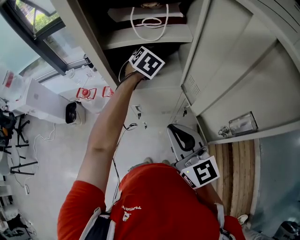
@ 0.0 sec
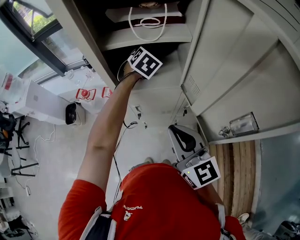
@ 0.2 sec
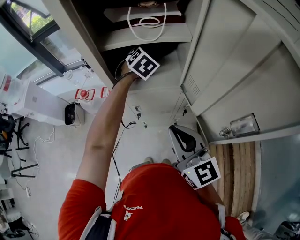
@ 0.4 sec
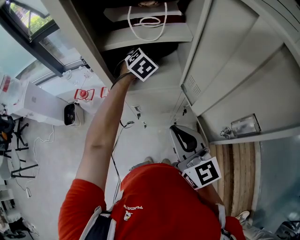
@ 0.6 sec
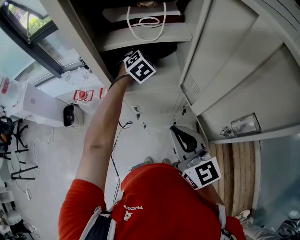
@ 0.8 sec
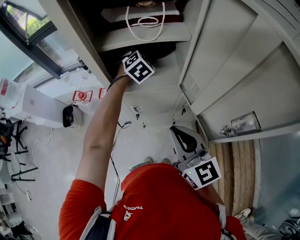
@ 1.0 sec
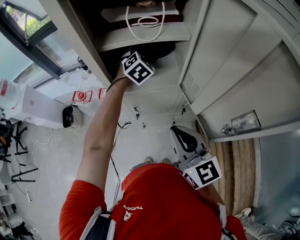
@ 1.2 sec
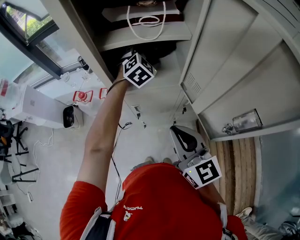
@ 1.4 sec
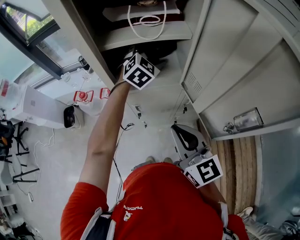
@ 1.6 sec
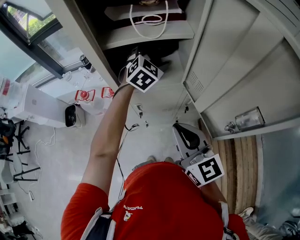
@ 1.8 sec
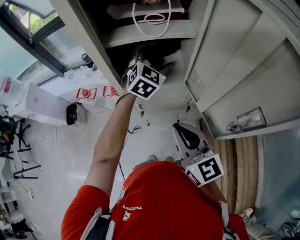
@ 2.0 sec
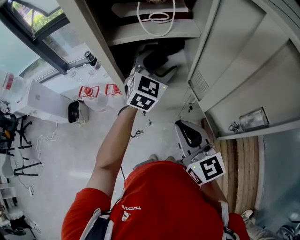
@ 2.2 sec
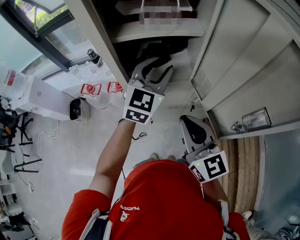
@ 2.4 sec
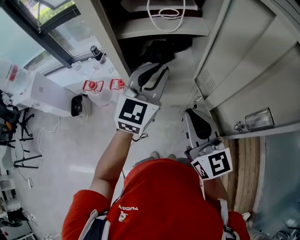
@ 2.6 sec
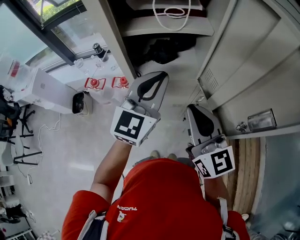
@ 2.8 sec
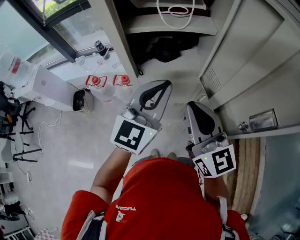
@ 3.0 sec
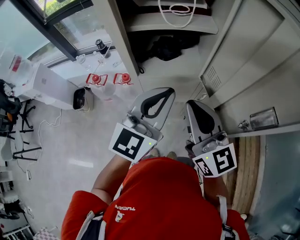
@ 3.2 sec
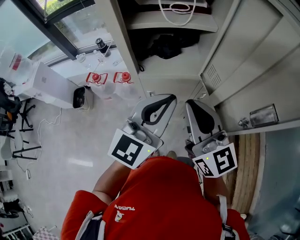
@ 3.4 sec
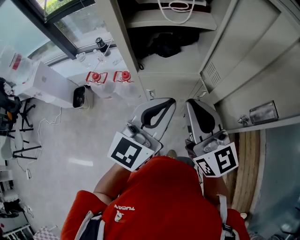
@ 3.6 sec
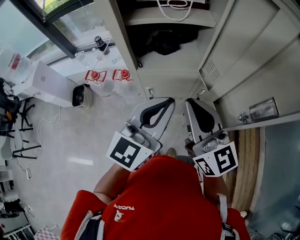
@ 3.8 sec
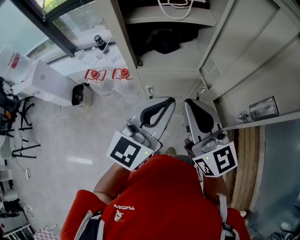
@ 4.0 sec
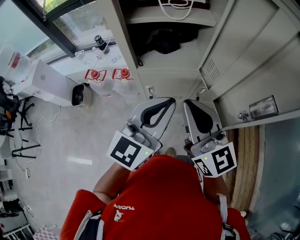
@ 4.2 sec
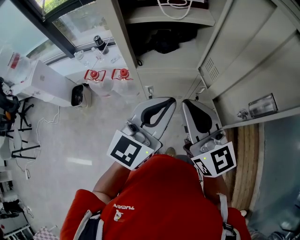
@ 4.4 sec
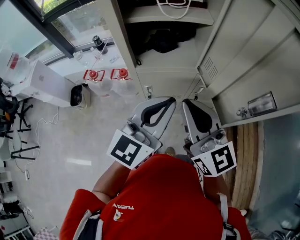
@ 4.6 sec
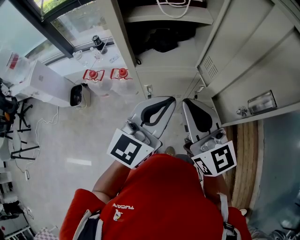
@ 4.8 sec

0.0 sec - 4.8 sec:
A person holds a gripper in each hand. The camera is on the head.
0.0 sec - 1.6 sec: The left gripper changes its angle by roughly 20 degrees, and opens its fingers.
1.6 sec - 3.2 sec: The right gripper heads upward, covering some 5 cm. Meanwhile the left gripper travels backward by approximately 25 cm, points its fingers some 30 degrees further upward, and closes up.
3.2 sec - 4.8 sec: The left gripper moves backward, some 5 cm.

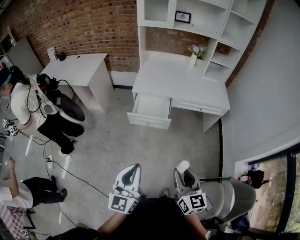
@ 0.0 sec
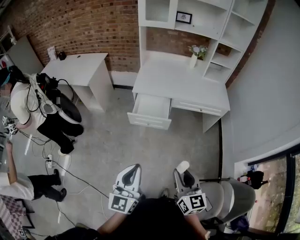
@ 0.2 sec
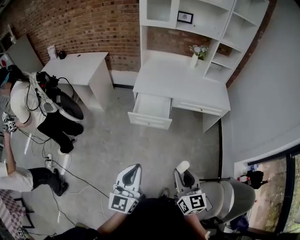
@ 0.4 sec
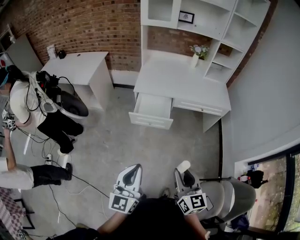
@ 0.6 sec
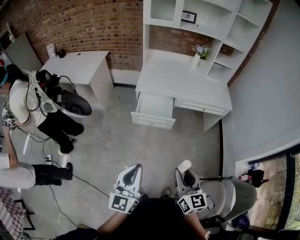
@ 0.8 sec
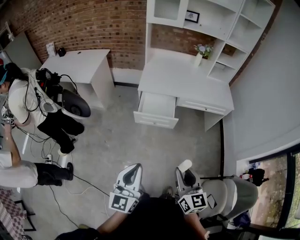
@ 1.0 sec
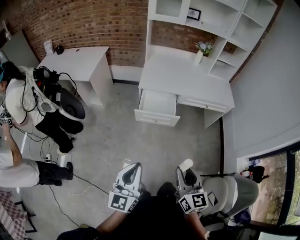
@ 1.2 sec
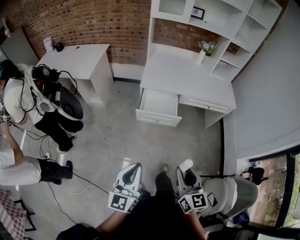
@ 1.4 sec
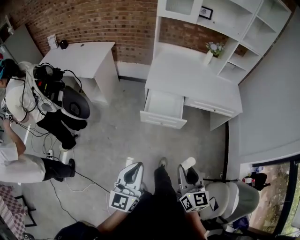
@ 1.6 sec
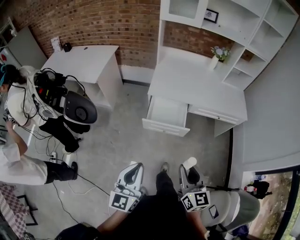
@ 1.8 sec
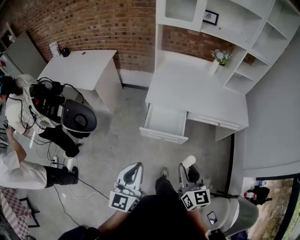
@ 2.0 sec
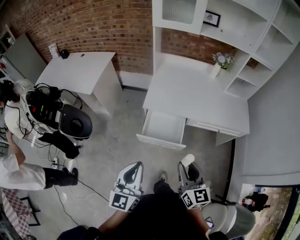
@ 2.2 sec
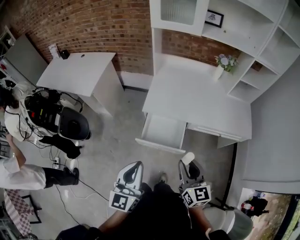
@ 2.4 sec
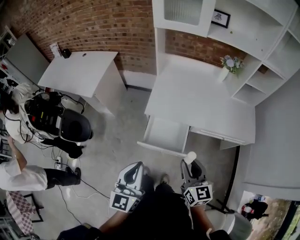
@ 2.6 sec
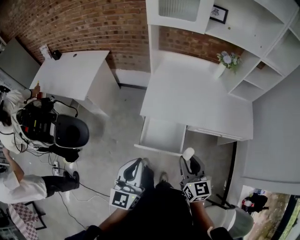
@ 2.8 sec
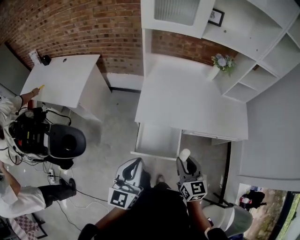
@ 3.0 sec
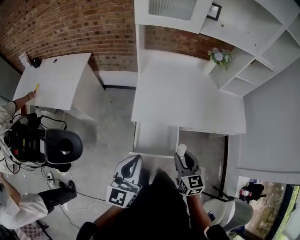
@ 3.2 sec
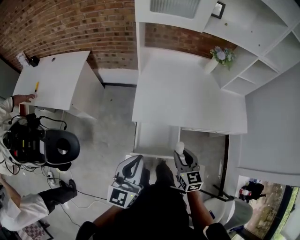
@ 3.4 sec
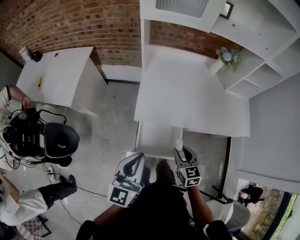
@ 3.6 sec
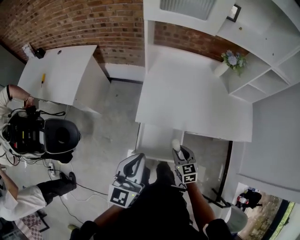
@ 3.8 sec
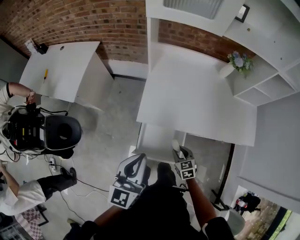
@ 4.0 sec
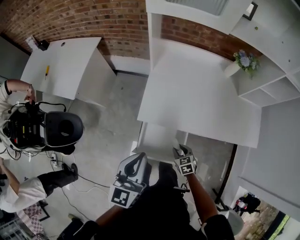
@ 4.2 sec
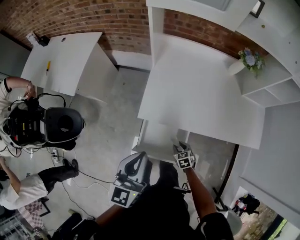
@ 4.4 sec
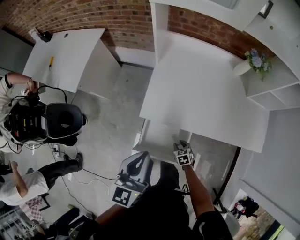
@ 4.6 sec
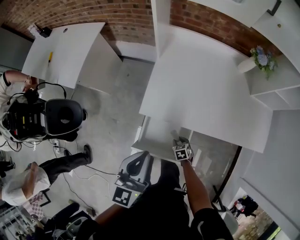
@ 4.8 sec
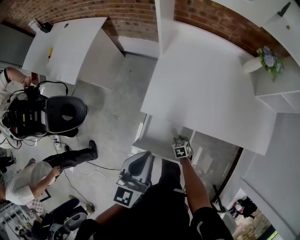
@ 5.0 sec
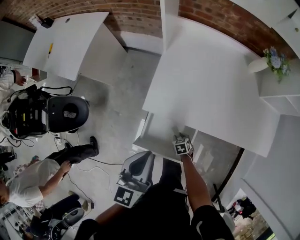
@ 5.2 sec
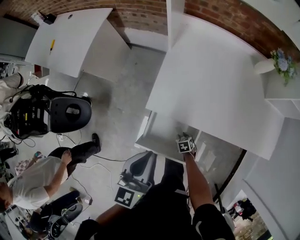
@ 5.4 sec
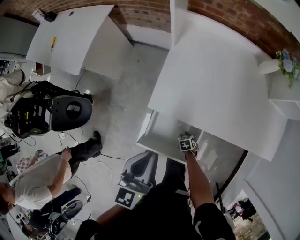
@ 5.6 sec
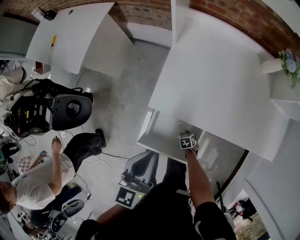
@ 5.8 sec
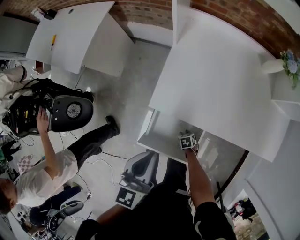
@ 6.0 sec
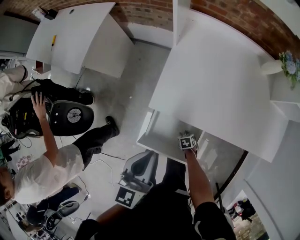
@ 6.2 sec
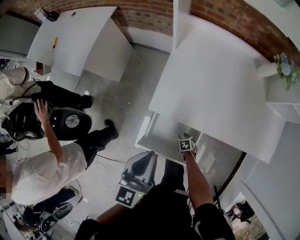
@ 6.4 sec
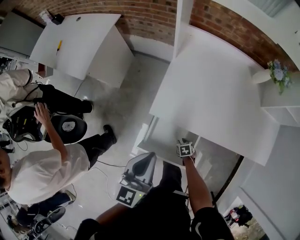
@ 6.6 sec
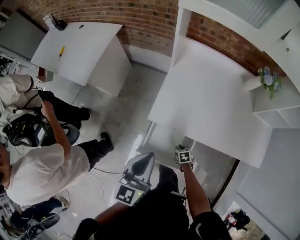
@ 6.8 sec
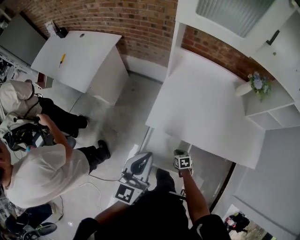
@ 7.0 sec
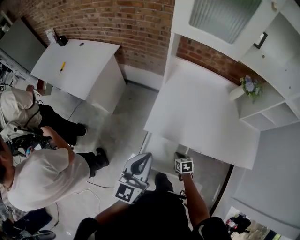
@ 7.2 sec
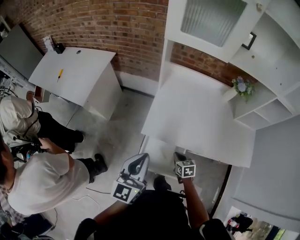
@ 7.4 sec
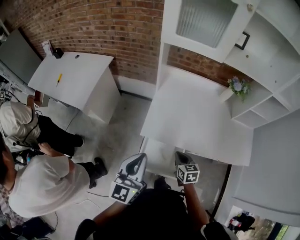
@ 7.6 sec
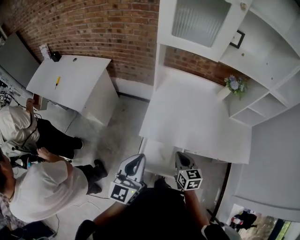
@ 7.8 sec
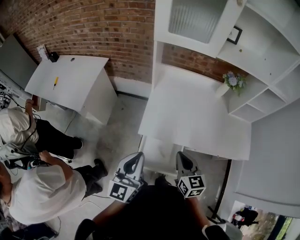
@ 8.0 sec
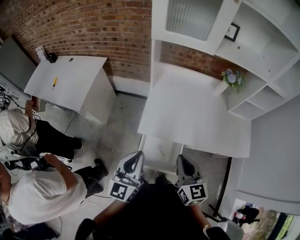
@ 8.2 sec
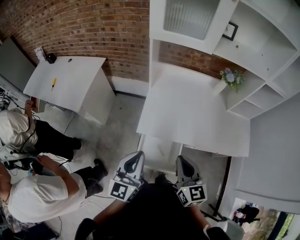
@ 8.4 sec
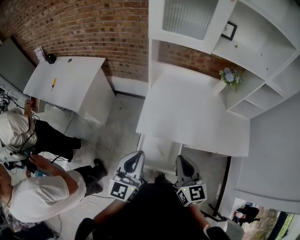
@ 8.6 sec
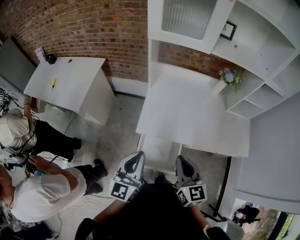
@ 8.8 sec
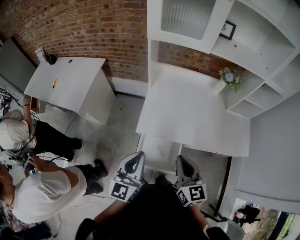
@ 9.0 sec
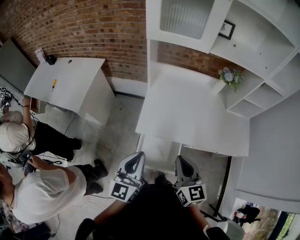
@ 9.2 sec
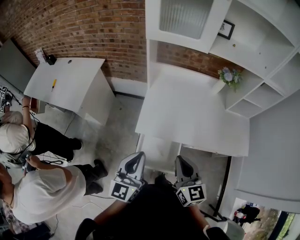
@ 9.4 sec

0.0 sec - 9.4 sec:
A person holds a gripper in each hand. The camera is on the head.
0.0 sec - 1.6 sec: The two grippers go roughly 15 cm to the left and forward.
1.6 sec - 3.2 sec: Both grippers are carried forward, about 50 cm.
3.2 sec - 4.8 sec: The right gripper moves downward, roughly 40 cm, and tips its fingers downward by about 40 degrees; the left gripper heads forward, downward and to the right, covering roughly 15 cm.
4.8 sec - 6.2 sec: The left gripper is displaced downward by some 5 cm; the right gripper goes about 10 cm downward.
6.2 sec - 7.8 sec: The left gripper goes about 15 cm upward, and changes its angle by approximately 20 degrees. Meanwhile the right gripper goes about 50 cm upward, points its fingers some 40 degrees further upward, and closes.
7.8 sec - 9.4 sec: The right gripper moves upward and backward, some 15 cm.

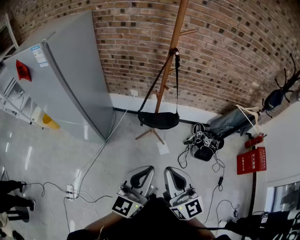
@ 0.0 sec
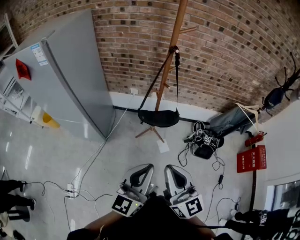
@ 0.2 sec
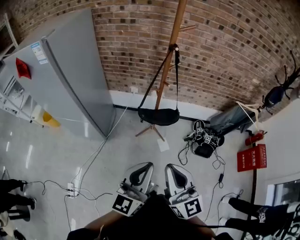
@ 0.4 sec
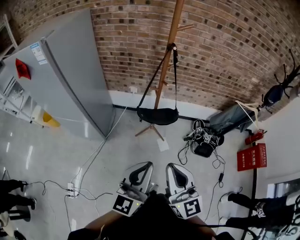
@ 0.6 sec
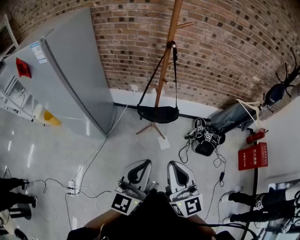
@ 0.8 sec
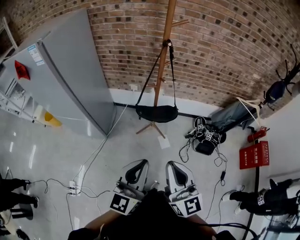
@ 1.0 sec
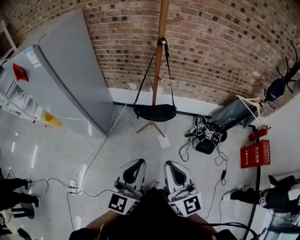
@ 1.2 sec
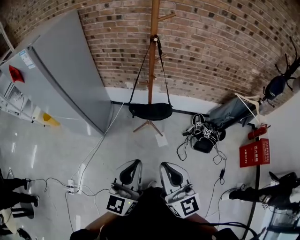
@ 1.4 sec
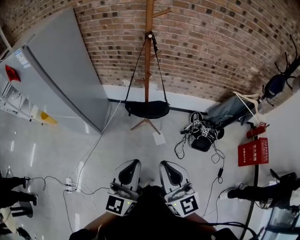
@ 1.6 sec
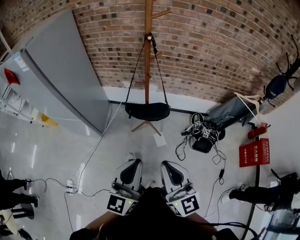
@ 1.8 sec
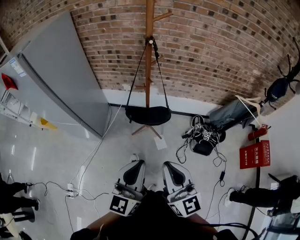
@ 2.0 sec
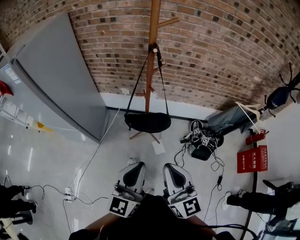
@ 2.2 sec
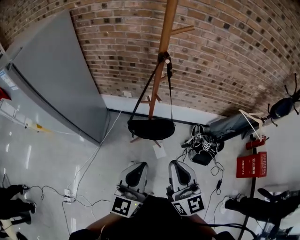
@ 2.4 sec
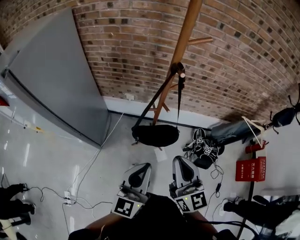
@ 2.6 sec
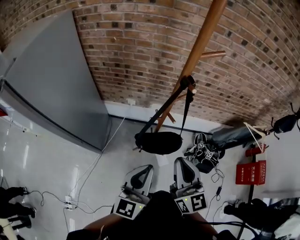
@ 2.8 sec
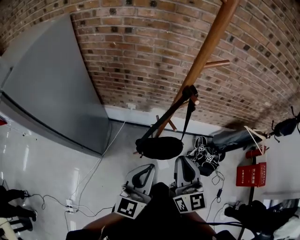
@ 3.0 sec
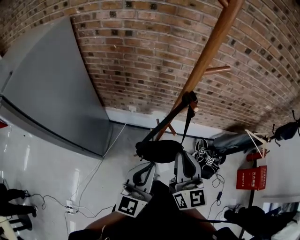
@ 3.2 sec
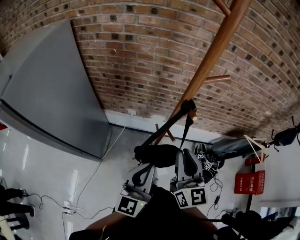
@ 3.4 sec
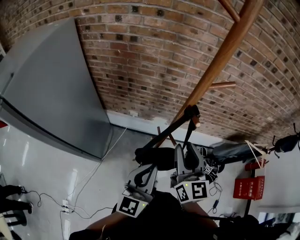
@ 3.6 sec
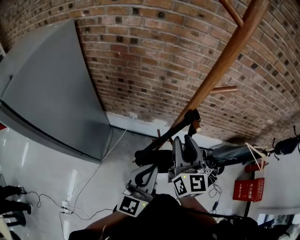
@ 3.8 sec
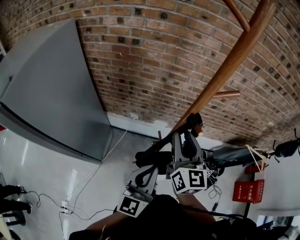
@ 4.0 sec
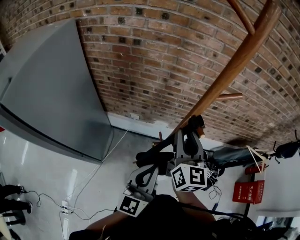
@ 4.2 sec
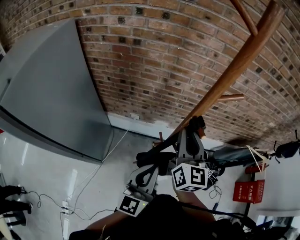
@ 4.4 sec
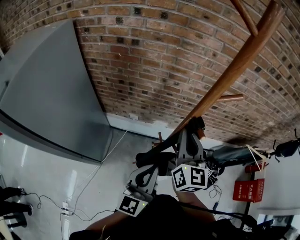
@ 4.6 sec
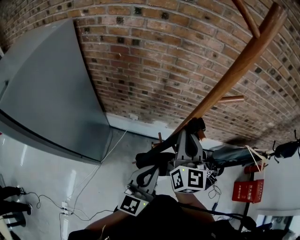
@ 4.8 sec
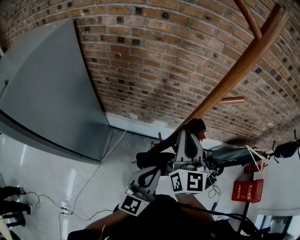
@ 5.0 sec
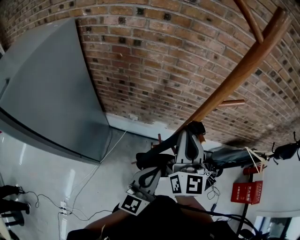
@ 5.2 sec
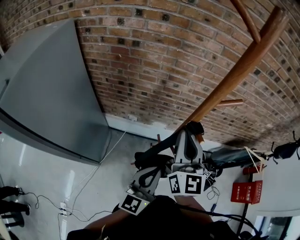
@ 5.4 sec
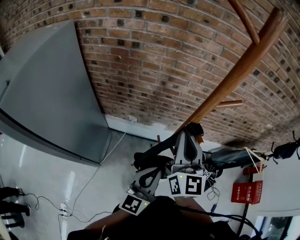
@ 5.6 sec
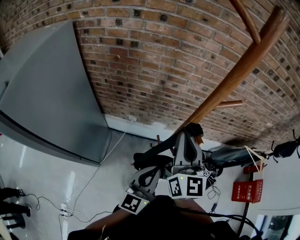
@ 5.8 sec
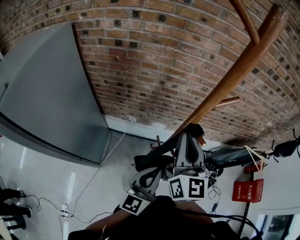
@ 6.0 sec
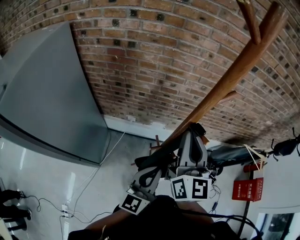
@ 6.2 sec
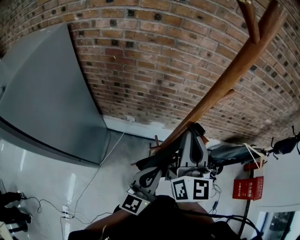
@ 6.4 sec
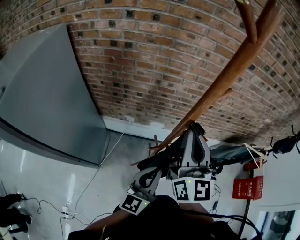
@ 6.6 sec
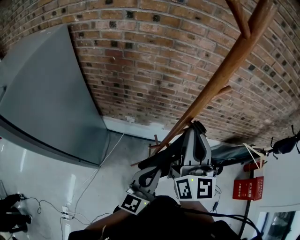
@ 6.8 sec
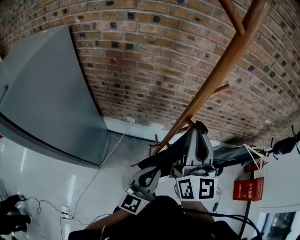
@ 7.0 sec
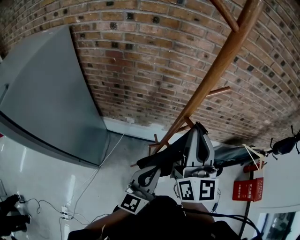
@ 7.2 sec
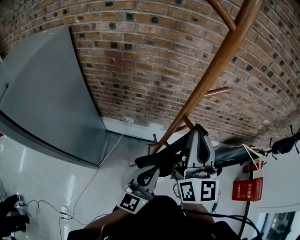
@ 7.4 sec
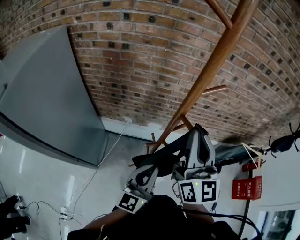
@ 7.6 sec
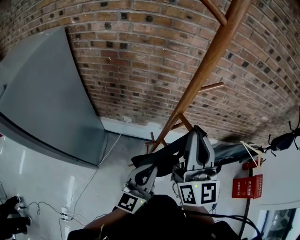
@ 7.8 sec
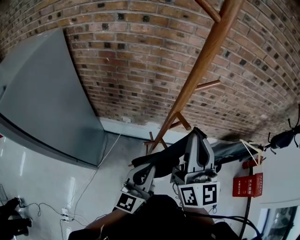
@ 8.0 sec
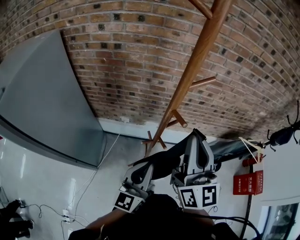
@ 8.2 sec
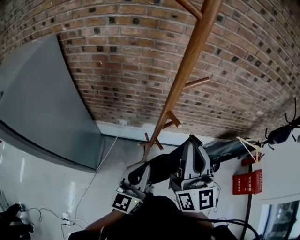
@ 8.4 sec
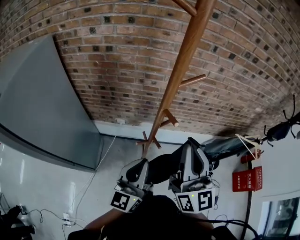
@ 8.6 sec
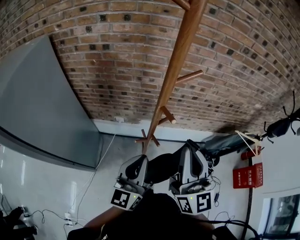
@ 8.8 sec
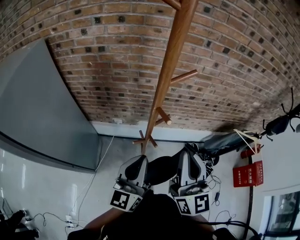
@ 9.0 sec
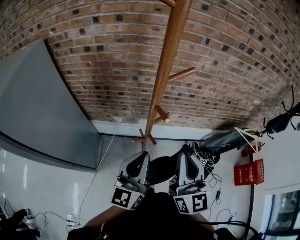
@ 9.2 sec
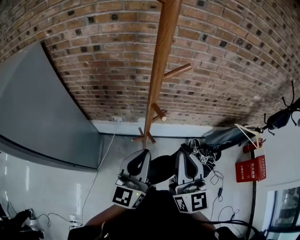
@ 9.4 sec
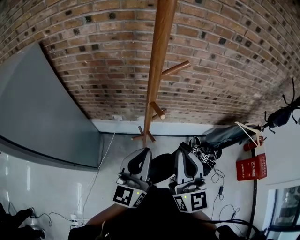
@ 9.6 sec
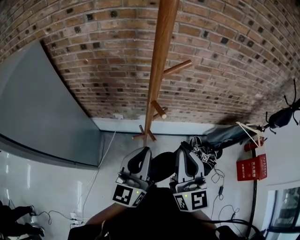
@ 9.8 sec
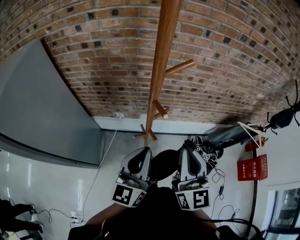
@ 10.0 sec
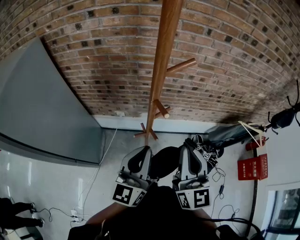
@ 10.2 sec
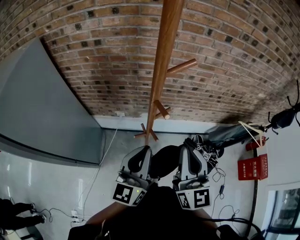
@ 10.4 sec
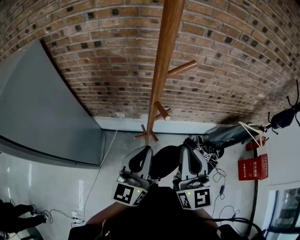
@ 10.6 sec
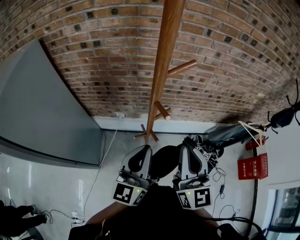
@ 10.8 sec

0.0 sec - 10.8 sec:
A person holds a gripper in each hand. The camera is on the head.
0.0 sec - 1.6 sec: The left gripper heads to the right, covering about 5 cm. Meanwhile the right gripper moves to the right, some 10 cm.
1.6 sec - 3.0 sec: The grippers both shift forward by some 30 cm.
3.0 sec - 4.6 sec: The left gripper goes about 10 cm forward, while the right gripper moves forward, some 20 cm, and opens, then closes once more.
4.6 sec - 6.2 sec: The right gripper travels upward by roughly 5 cm.
6.2 sec - 7.8 sec: The right gripper shifts by roughly 5 cm.
7.8 sec - 9.2 sec: The left gripper heads upward, covering some 5 cm, while the right gripper moves downward, to the right and backward, roughly 10 cm.
9.2 sec - 10.8 sec: The grippers stay close to where they were, moving slightly.
